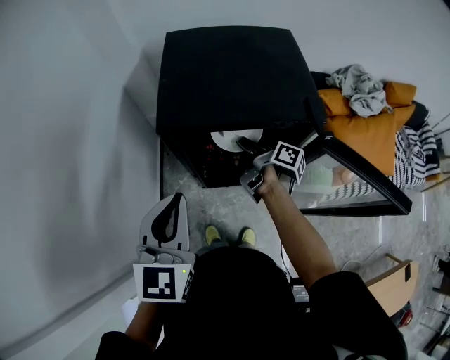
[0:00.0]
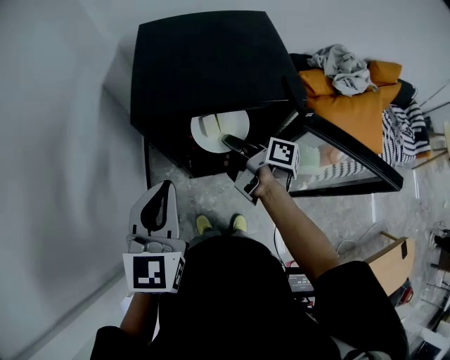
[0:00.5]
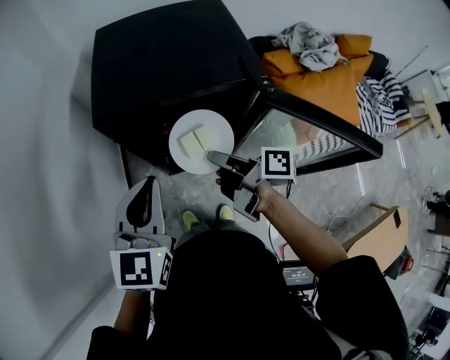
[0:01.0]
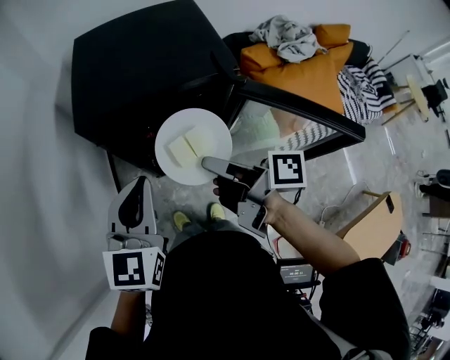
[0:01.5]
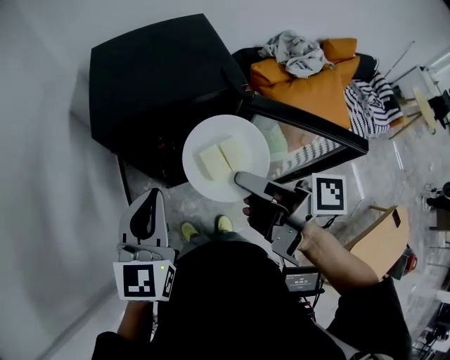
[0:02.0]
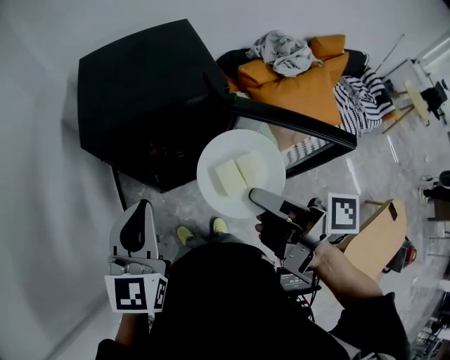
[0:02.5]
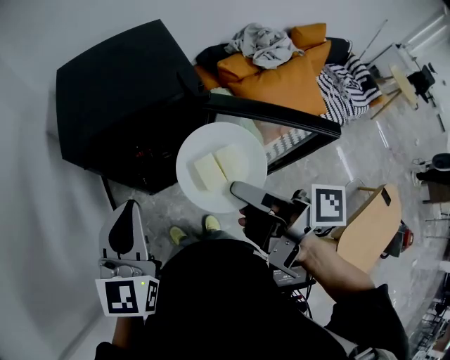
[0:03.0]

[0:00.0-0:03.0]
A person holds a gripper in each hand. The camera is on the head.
0:00.0 to 0:01.5: The left gripper moves to the right, about 5 cm, while the right gripper heads backward and upward, covering some 25 cm.
0:01.5 to 0:03.0: The right gripper travels upward, backward and to the right by about 15 cm, while the left gripper ends up about 5 cm from where it was.

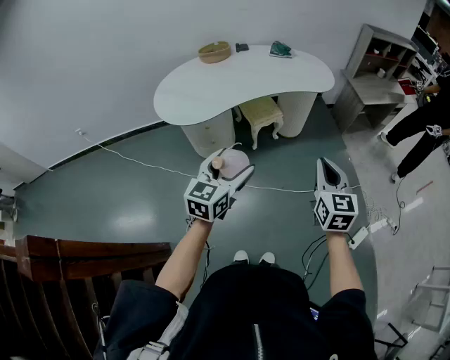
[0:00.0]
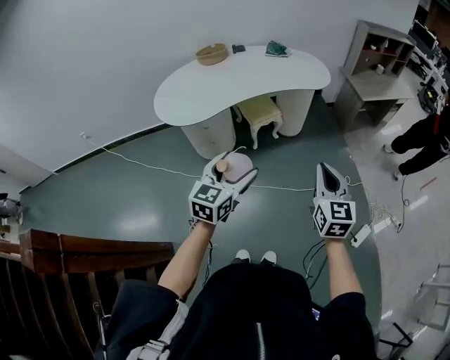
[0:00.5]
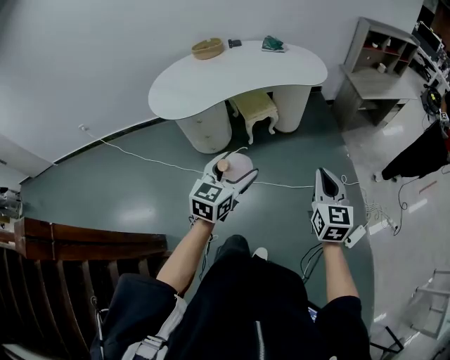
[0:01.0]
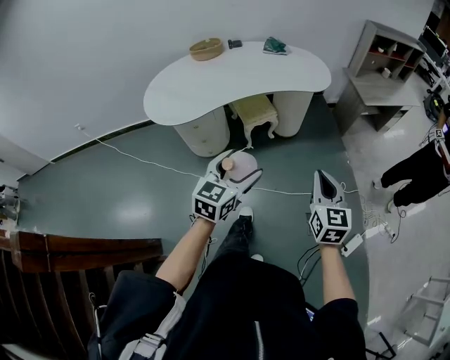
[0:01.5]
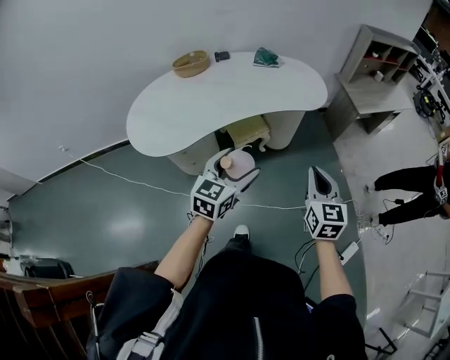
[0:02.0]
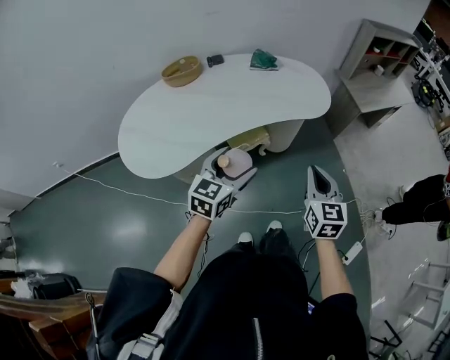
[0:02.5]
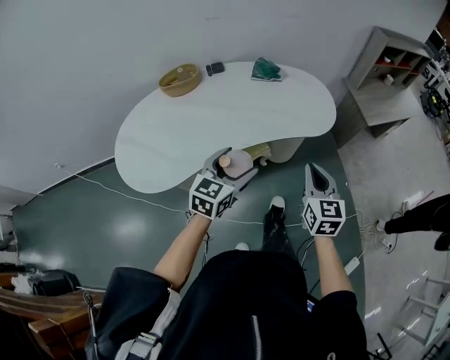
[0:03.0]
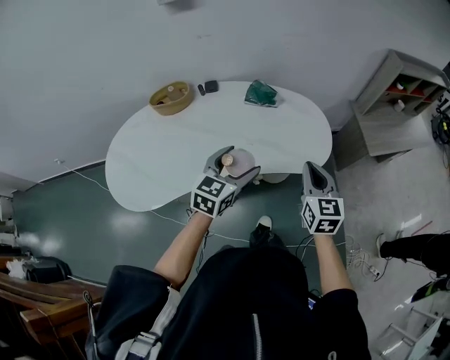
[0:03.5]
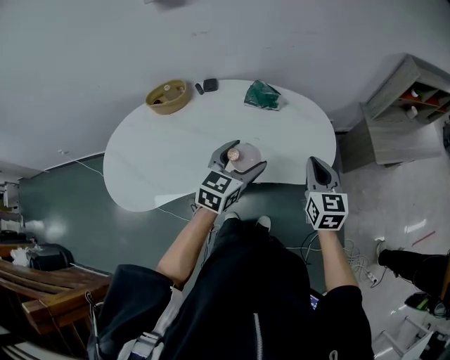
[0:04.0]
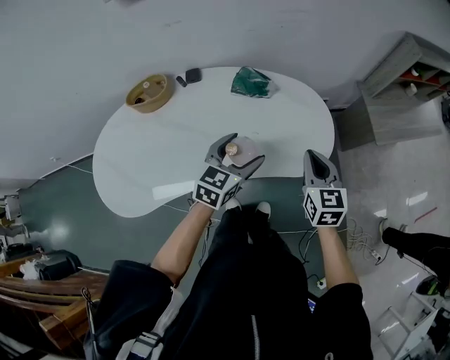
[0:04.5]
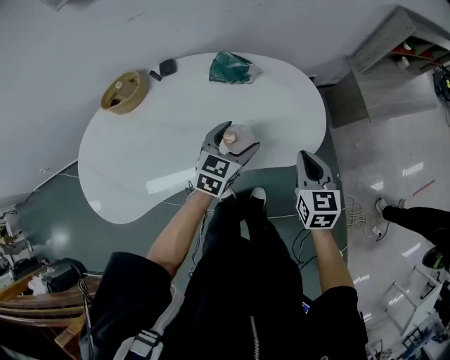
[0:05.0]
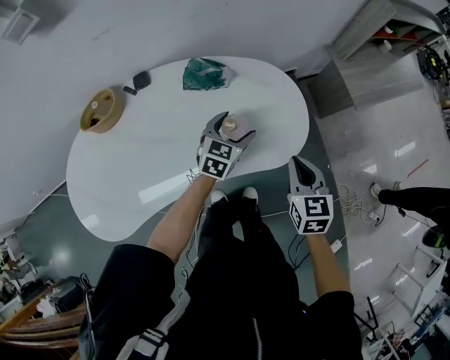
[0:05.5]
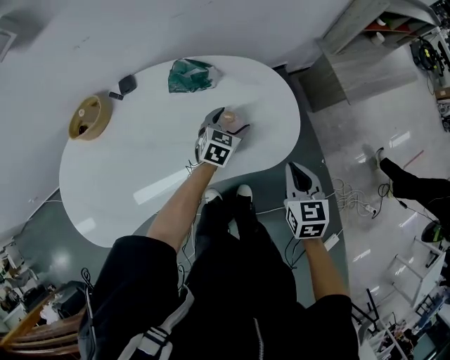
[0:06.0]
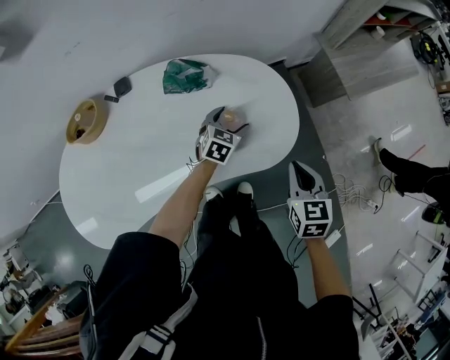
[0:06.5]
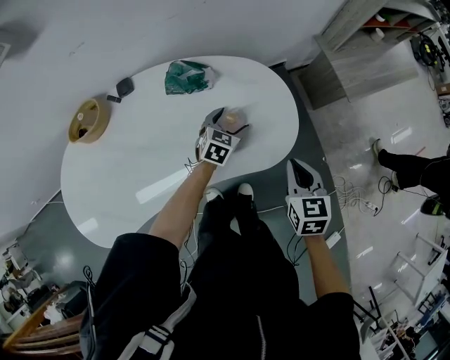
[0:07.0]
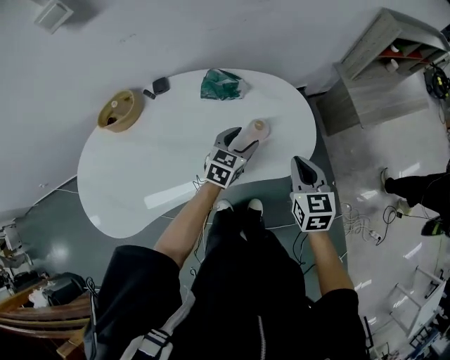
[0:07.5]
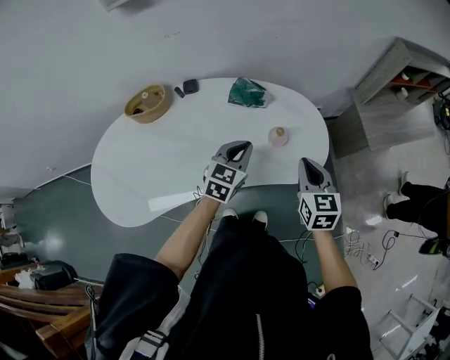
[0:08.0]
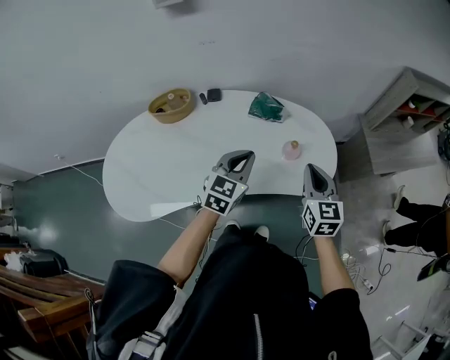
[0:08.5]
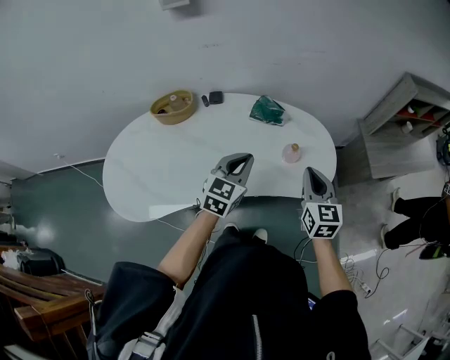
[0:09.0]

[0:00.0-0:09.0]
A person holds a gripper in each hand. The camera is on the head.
0:00.0 to 0:02.0: The two grippers go about 20 cm forward.
0:02.0 to 0:04.5: Both grippers are carried forward, approximately 50 cm.
0:04.5 to 0:07.0: The left gripper travels downward, forward and to the right by approximately 25 cm; the right gripper goes some 15 cm to the right and downward.
0:07.0 to 0:09.0: The right gripper moves to the left and upward, about 20 cm, and rotates approximately 20 degrees. Meanwhile the left gripper moves upward, backward and to the left, some 35 cm, swivels about 30 degrees, and closes its fingers.

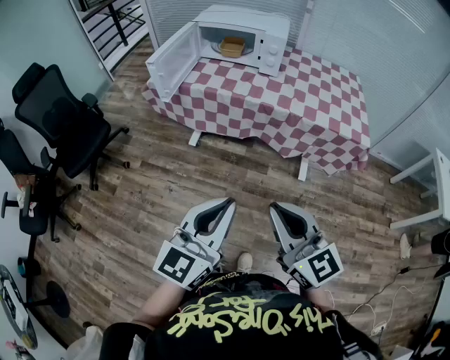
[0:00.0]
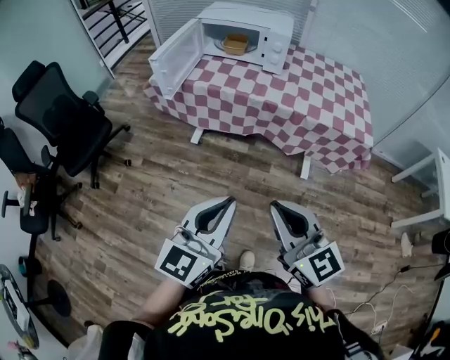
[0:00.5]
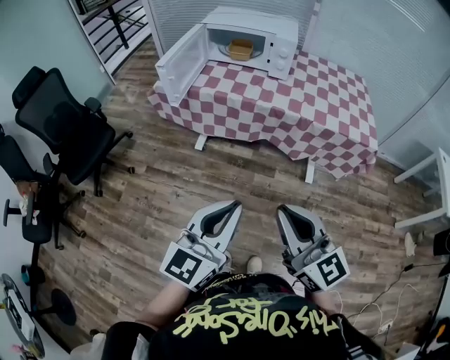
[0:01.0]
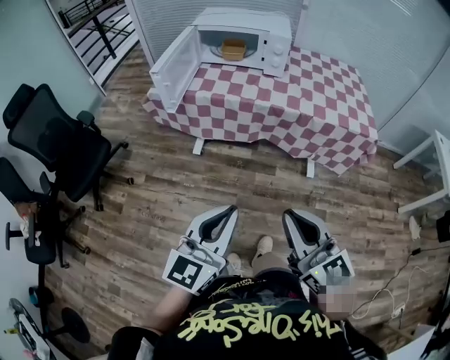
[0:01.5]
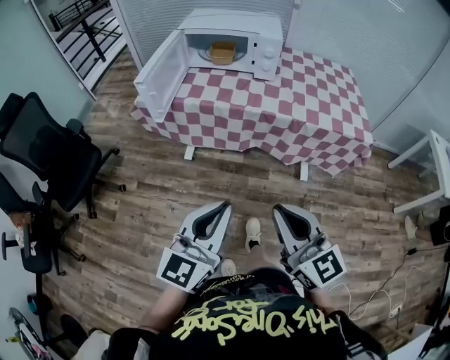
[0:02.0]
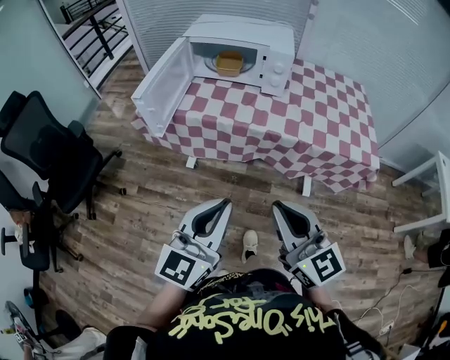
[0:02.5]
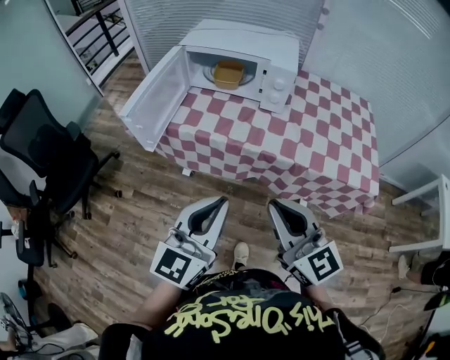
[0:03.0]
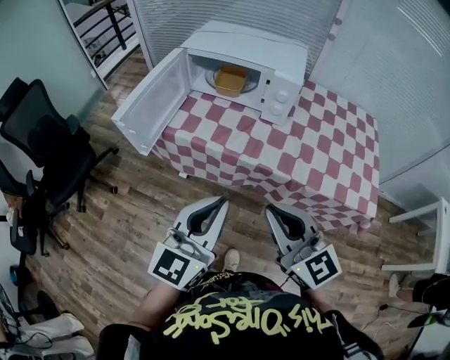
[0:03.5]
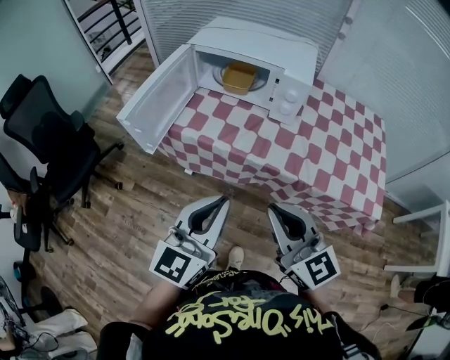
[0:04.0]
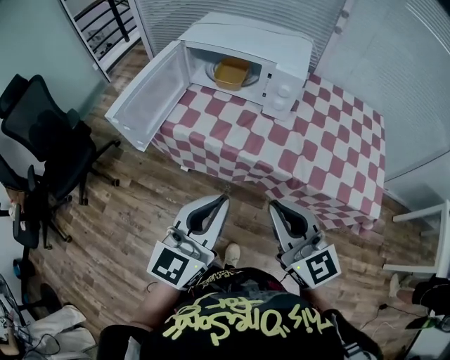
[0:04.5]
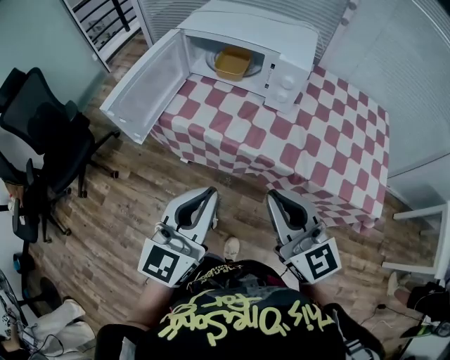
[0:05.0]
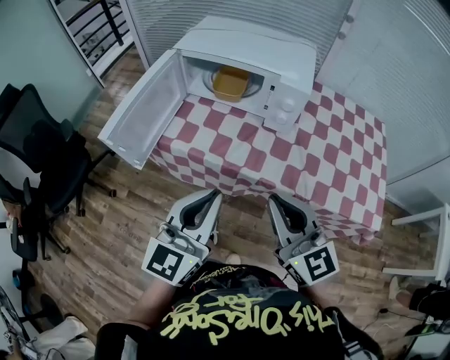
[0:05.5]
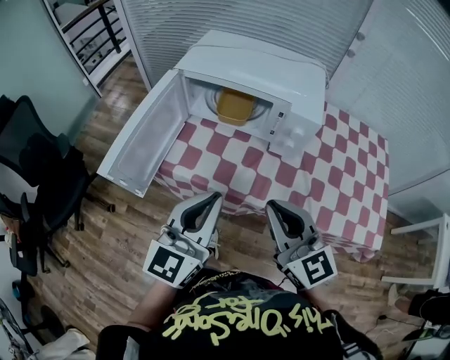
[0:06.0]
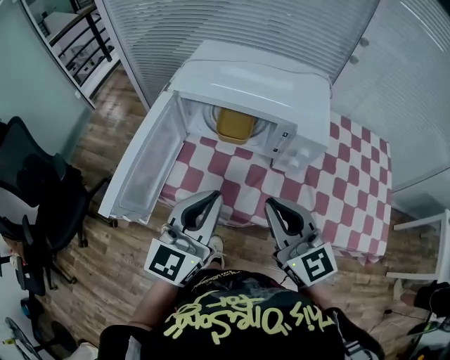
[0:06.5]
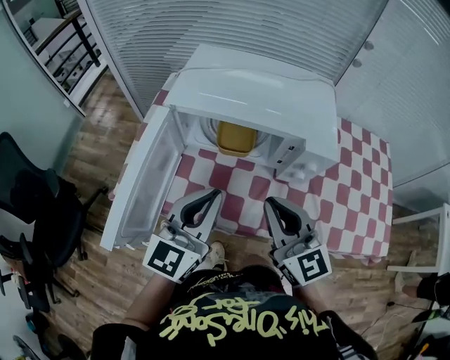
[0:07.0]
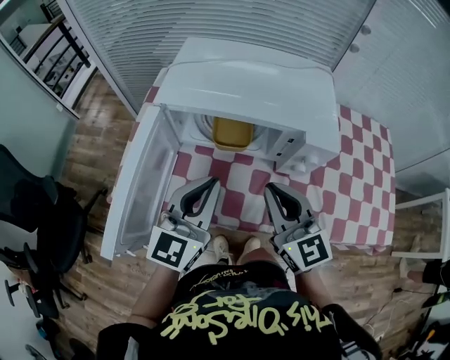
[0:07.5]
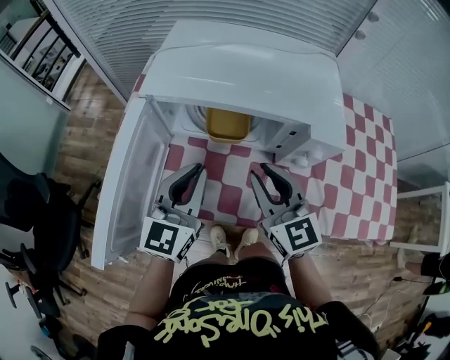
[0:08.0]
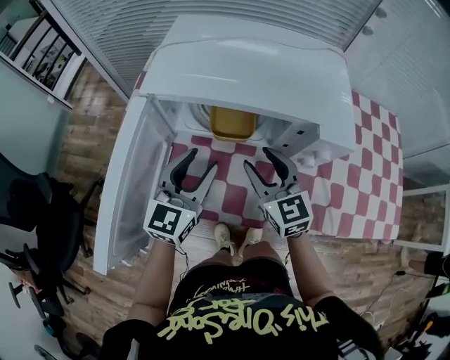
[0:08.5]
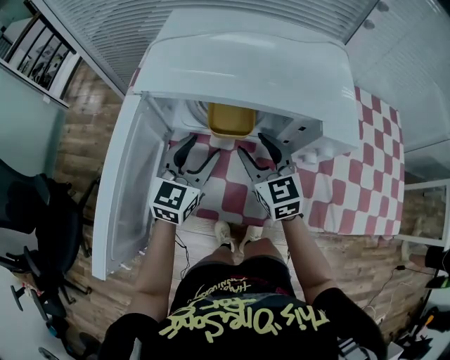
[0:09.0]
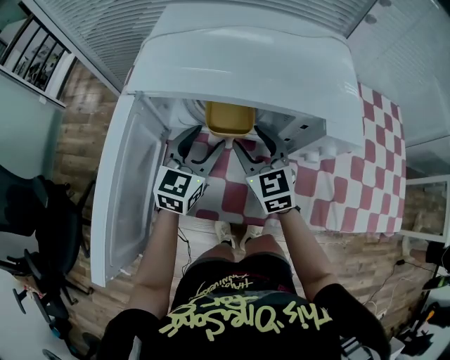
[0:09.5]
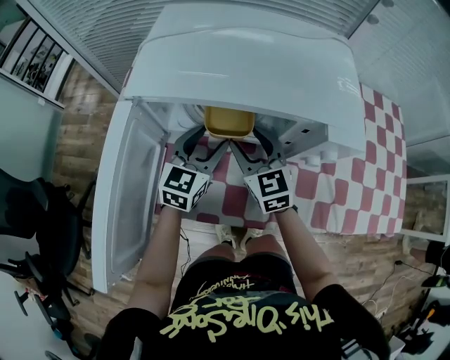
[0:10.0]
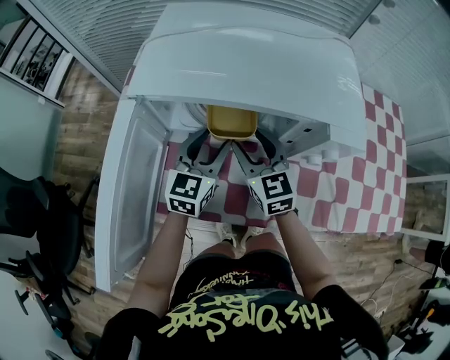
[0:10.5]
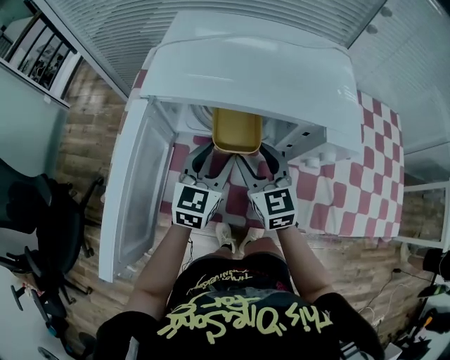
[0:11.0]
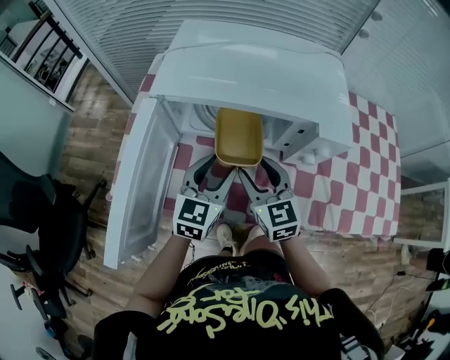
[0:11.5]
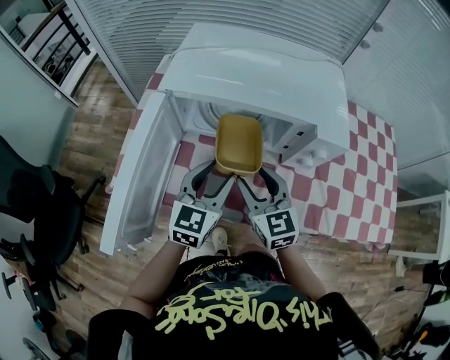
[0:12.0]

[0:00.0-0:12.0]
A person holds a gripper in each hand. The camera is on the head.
0:00.0 to 0:02.0: The right gripper heads forward, covering about 5 cm. Meanwhile the left gripper is displaced forward and to the left by roughly 10 cm.
0:02.0 to 0:04.0: Both grippers travel together forward, about 20 cm.
0:04.0 to 0:06.0: Both grippers move forward, about 15 cm.
0:06.0 to 0:08.0: Both grippers travel together forward, approximately 20 cm.
0:08.0 to 0:10.0: The two grippers go about 15 cm downward and forward. The right gripper opens. The left gripper opens up.
0:10.0 to 0:12.0: The left gripper heads backward and upward, covering some 10 cm, while the right gripper shifts approximately 10 cm backward.

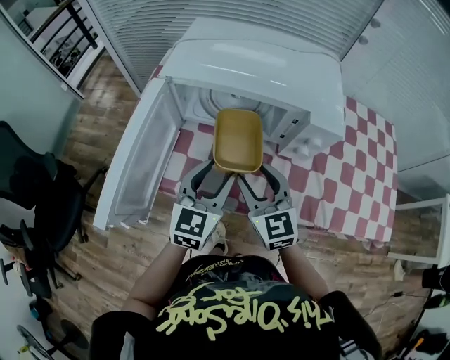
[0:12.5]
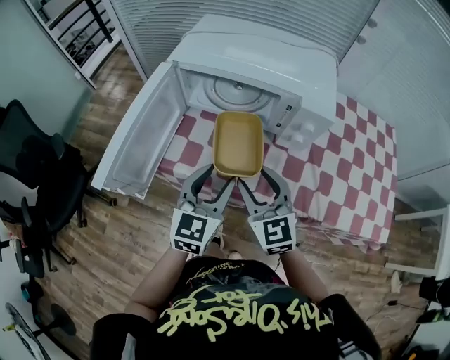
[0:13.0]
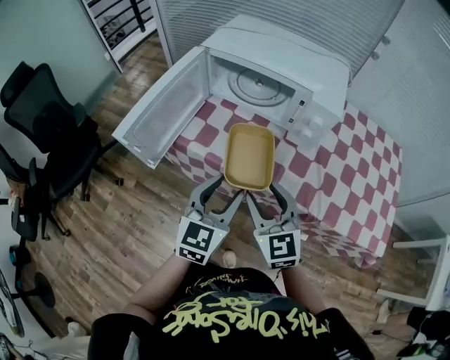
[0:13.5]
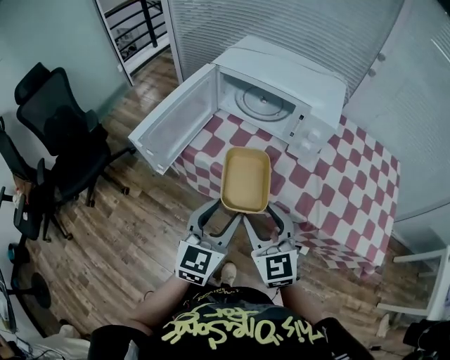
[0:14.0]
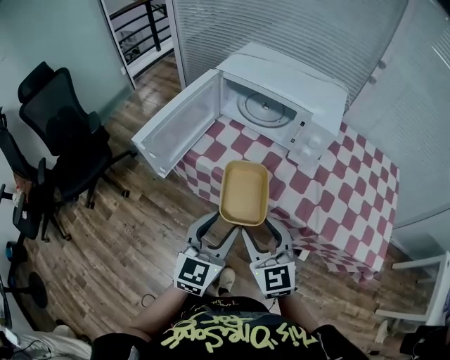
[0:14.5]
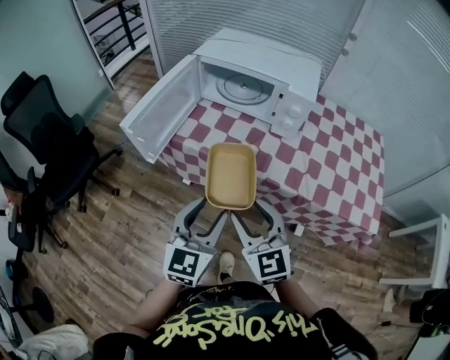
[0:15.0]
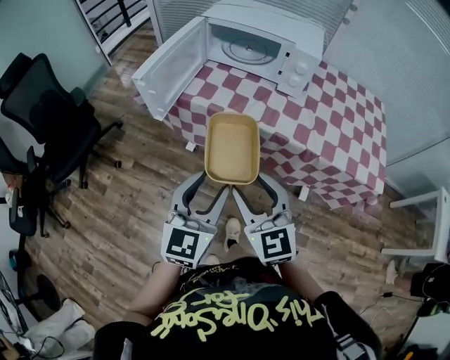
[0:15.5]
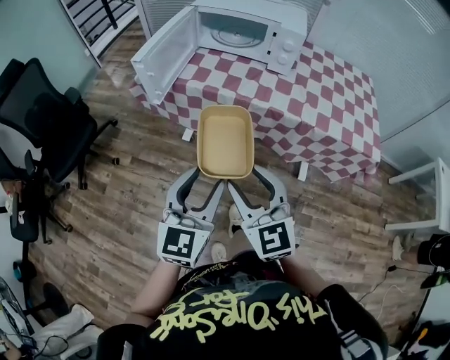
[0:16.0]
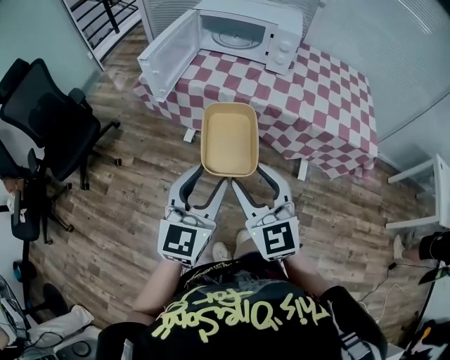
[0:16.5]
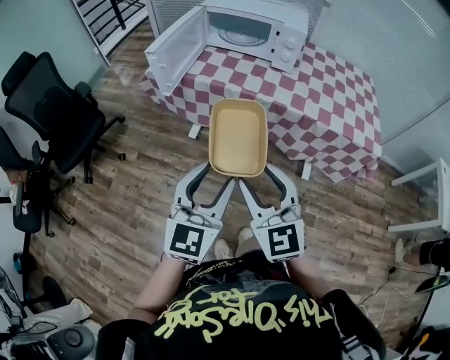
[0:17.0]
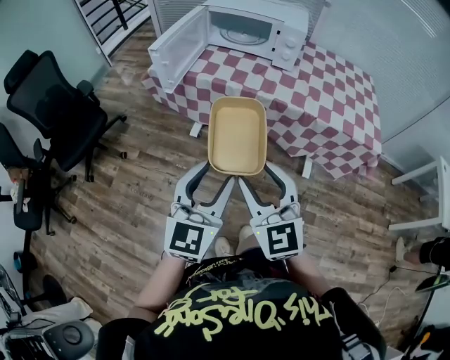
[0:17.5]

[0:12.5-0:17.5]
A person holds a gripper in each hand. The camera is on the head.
0:12.5 to 0:15.0: The two grippers go some 25 cm backward.
0:15.0 to 0:17.5: The grippers both shift backward by some 20 cm.
